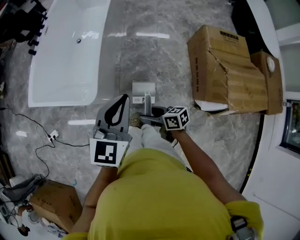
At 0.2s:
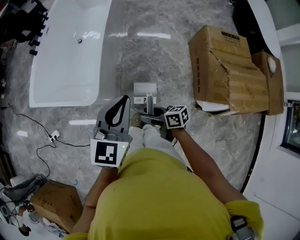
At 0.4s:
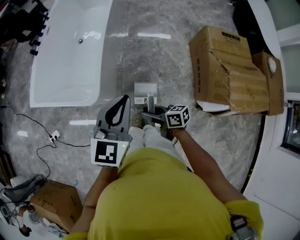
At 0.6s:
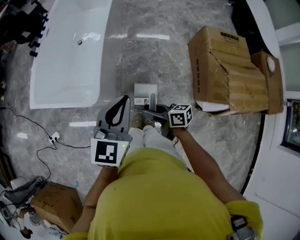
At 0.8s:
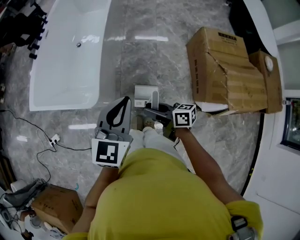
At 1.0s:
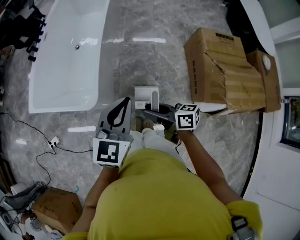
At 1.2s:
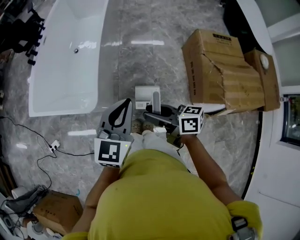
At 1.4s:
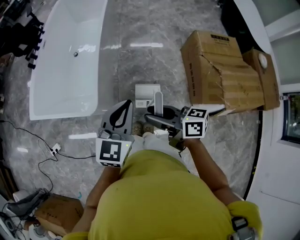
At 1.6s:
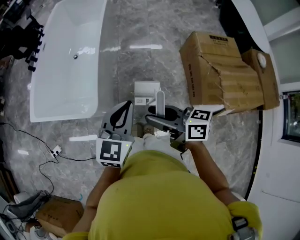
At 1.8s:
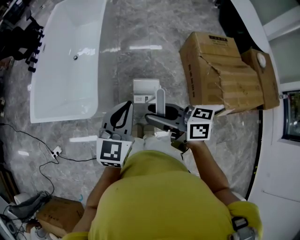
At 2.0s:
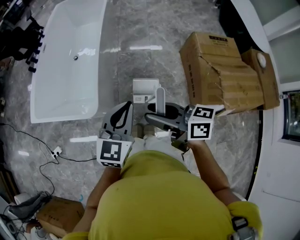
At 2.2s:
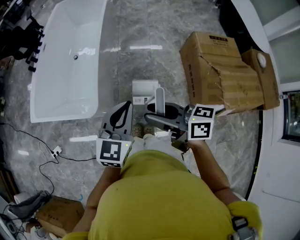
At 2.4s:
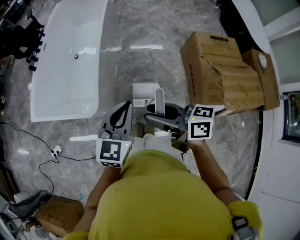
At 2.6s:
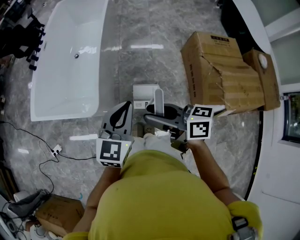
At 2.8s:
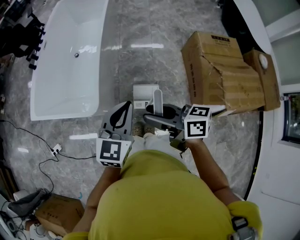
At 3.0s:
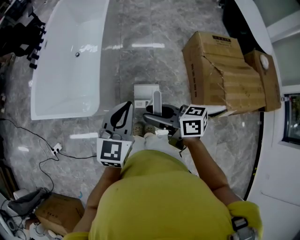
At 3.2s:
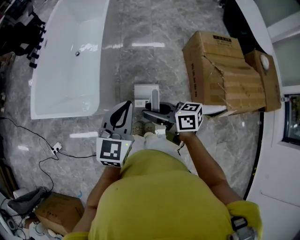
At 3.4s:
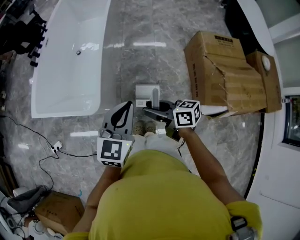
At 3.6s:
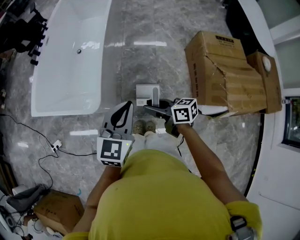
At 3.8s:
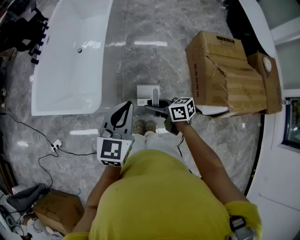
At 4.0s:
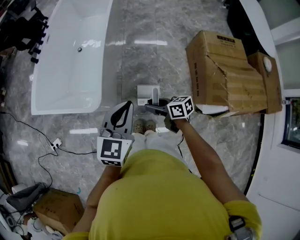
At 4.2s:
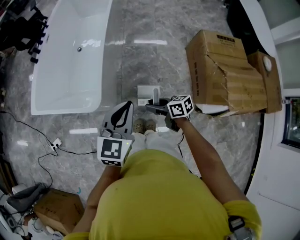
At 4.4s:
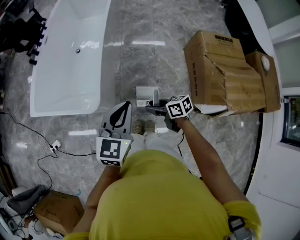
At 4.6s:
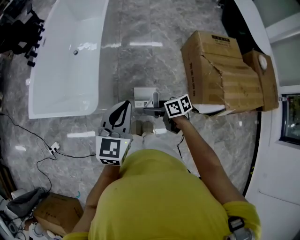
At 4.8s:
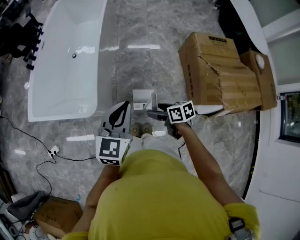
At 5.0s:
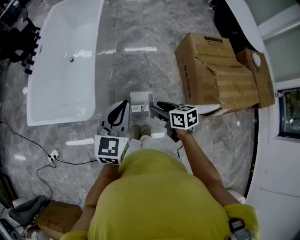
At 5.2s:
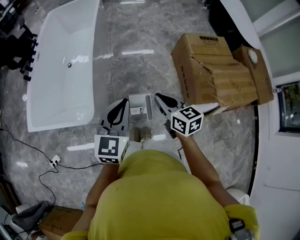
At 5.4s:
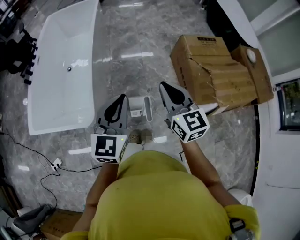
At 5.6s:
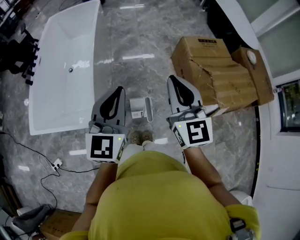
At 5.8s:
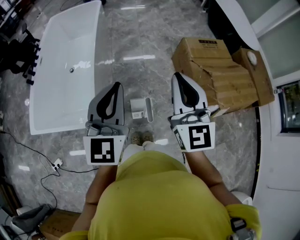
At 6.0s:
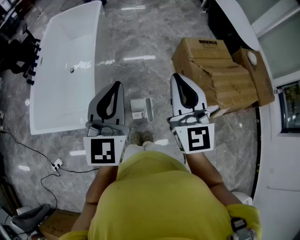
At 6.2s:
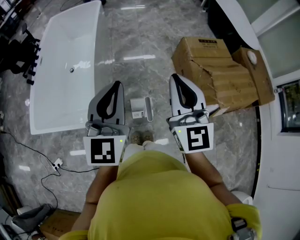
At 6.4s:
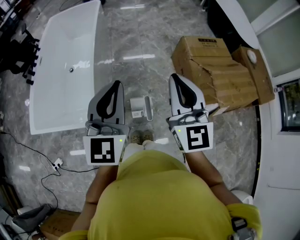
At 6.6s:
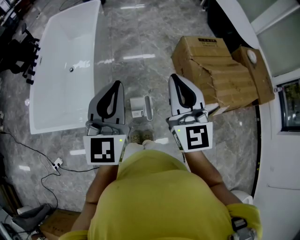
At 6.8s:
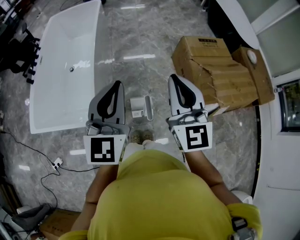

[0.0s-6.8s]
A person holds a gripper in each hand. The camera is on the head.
0.0s to 1.4s: The right gripper shifts approximately 20 cm upward.
1.4s to 2.8s: There are only small adjustments of the grippers.
2.8s to 4.0s: The right gripper is displaced downward by roughly 20 cm.
4.0s to 5.4s: The left gripper moves upward, some 5 cm. The right gripper moves upward, some 25 cm, rotates roughly 60 degrees, and closes up.
5.4s to 6.8s: Both grippers move upward, approximately 10 cm. The right gripper changes its angle by approximately 20 degrees.

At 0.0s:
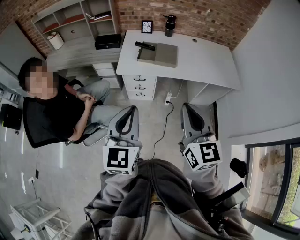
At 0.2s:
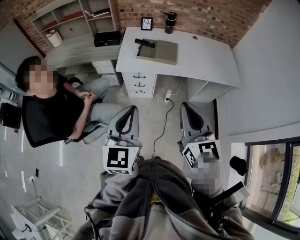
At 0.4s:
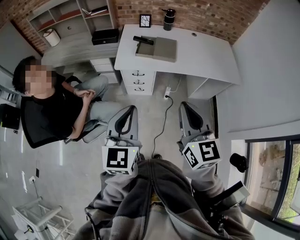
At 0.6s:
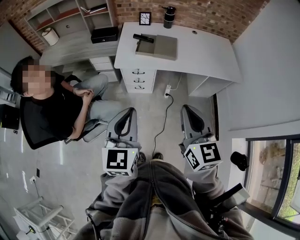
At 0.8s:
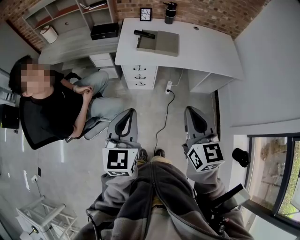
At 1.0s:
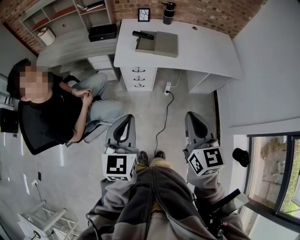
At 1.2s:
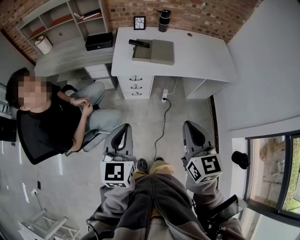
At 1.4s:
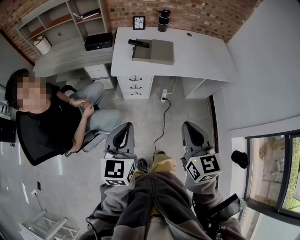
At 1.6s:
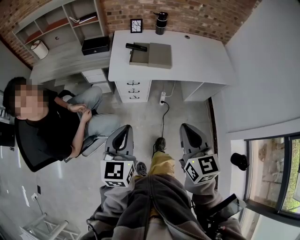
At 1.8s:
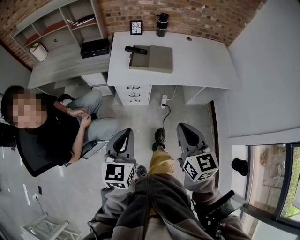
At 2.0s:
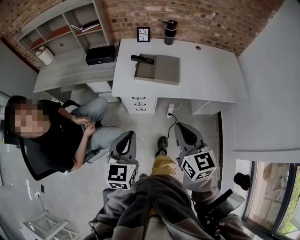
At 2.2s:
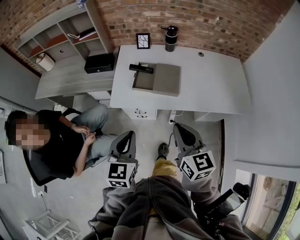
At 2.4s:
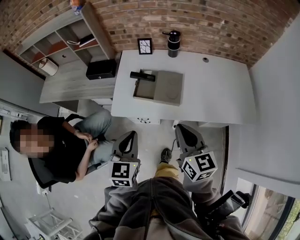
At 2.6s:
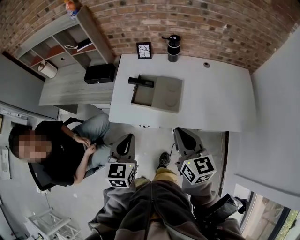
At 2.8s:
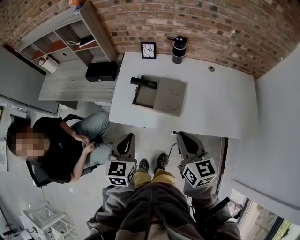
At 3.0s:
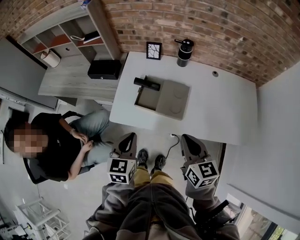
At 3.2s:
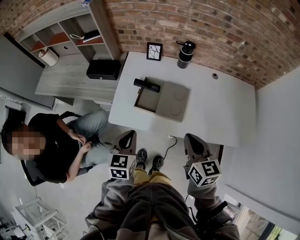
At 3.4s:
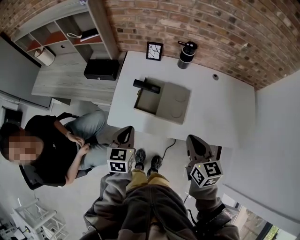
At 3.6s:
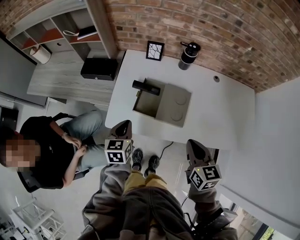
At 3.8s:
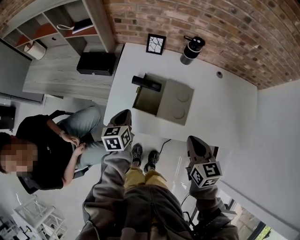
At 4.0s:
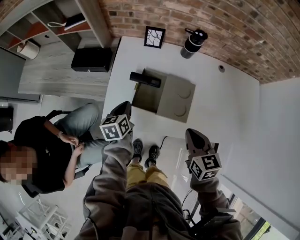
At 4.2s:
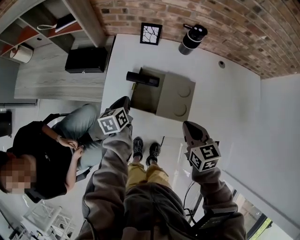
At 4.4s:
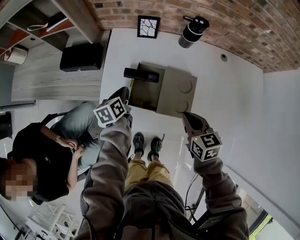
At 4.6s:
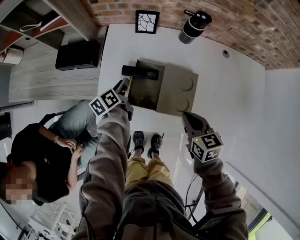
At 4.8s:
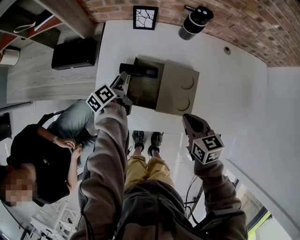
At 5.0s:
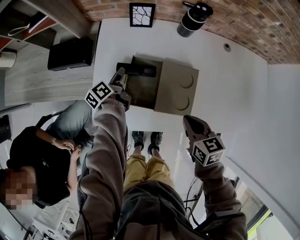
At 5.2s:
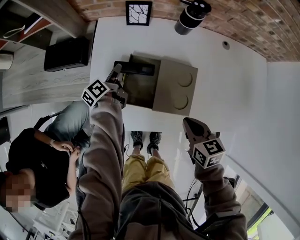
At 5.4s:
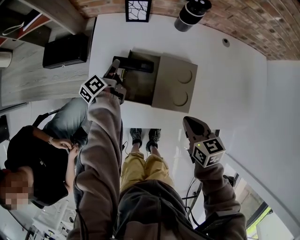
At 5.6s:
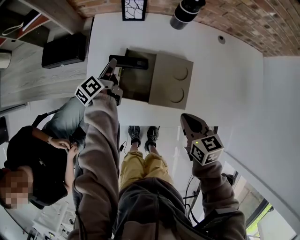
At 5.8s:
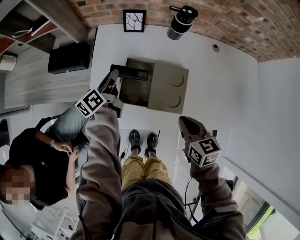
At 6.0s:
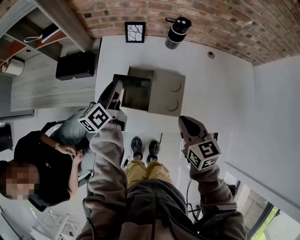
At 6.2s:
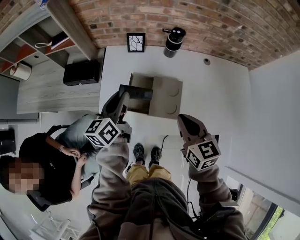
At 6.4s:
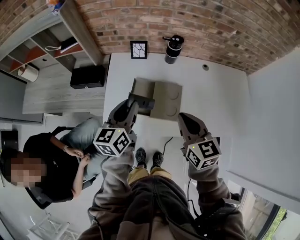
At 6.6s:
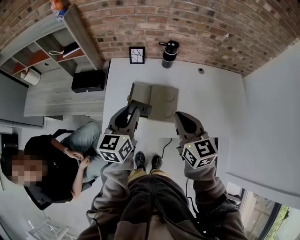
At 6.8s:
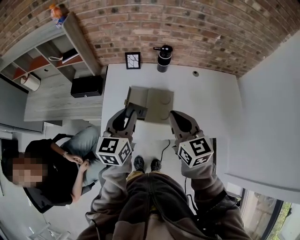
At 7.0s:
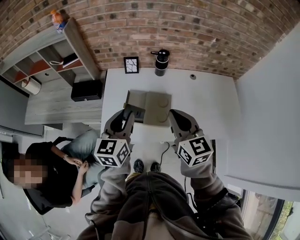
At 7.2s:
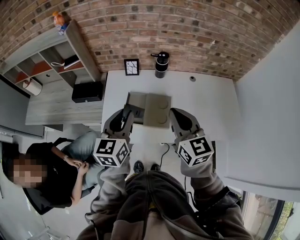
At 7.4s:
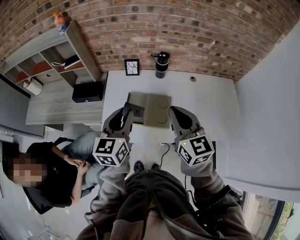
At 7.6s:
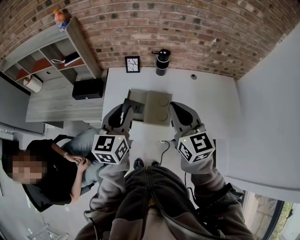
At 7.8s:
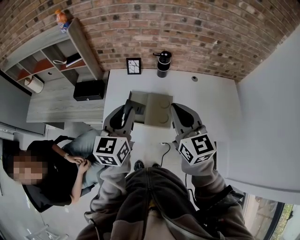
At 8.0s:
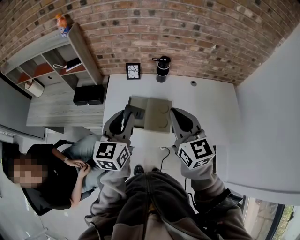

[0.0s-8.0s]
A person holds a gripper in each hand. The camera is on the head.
0.0s to 1.6s: Both grippers travel together downward, some 10 cm.
1.6s to 3.2s: Both grippers travel together forward, about 35 cm.
3.2s to 4.8s: The left gripper heads forward and downward, covering some 40 cm, twists about 60 degrees counterclockwise, seen from behind, and opens. Meanwhile the right gripper travels downward and forward by about 20 cm, and turns by about 20 degrees.
4.8s to 6.4s: The left gripper is displaced upward and backward by approximately 30 cm, and twists roughly 40 degrees clockwise, seen from behind. The right gripper travels upward by roughly 20 cm, and changes its angle by some 20 degrees.
6.4s to 8.0s: The right gripper is displaced upward by approximately 10 cm; the left gripper heads upward and backward, covering some 10 cm.

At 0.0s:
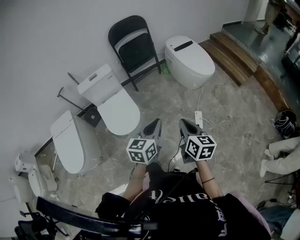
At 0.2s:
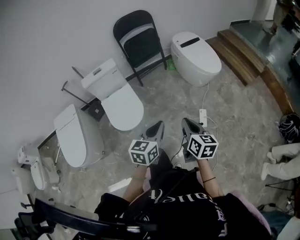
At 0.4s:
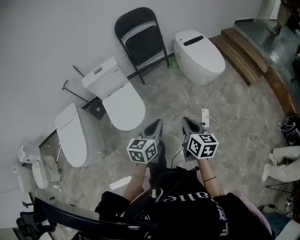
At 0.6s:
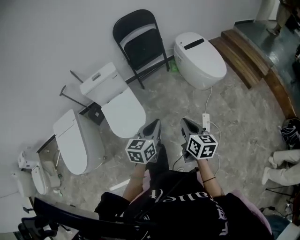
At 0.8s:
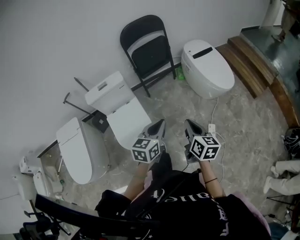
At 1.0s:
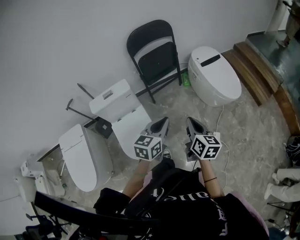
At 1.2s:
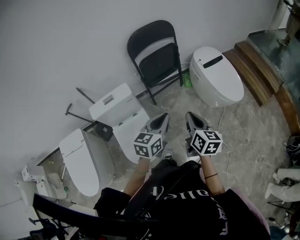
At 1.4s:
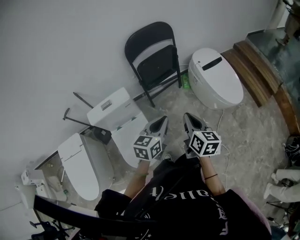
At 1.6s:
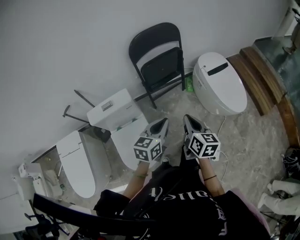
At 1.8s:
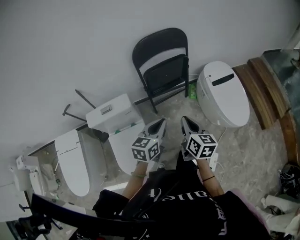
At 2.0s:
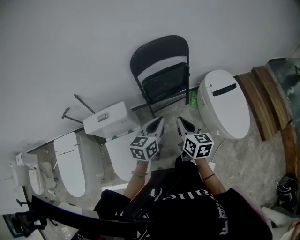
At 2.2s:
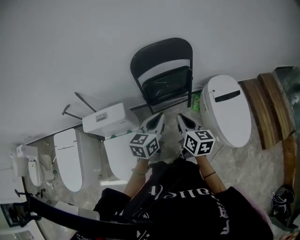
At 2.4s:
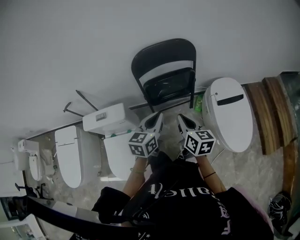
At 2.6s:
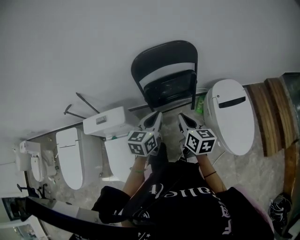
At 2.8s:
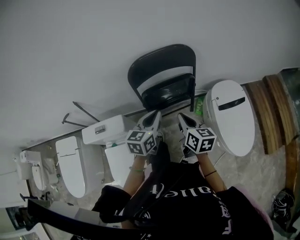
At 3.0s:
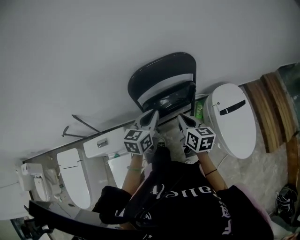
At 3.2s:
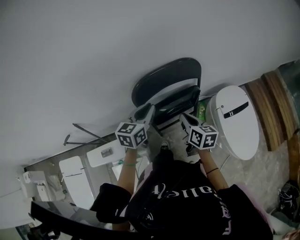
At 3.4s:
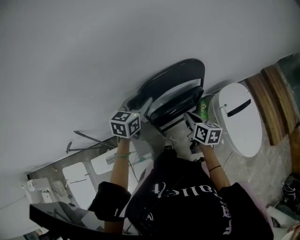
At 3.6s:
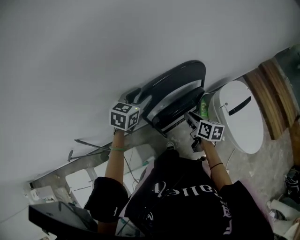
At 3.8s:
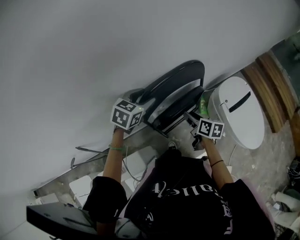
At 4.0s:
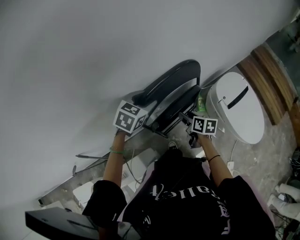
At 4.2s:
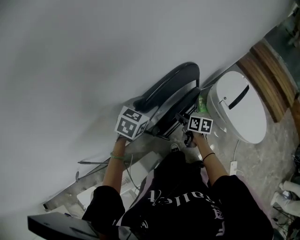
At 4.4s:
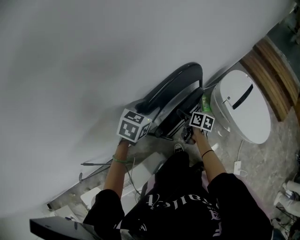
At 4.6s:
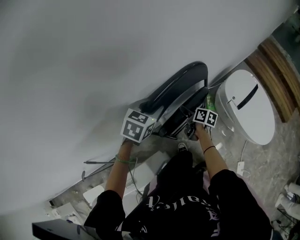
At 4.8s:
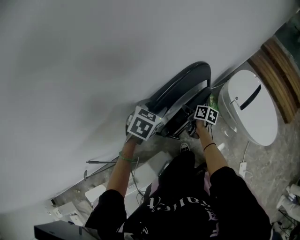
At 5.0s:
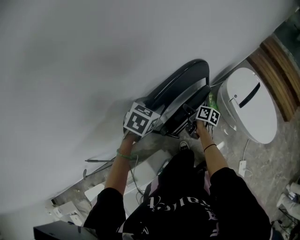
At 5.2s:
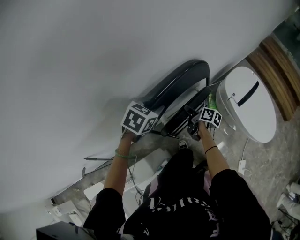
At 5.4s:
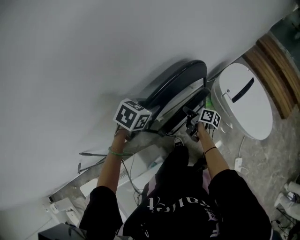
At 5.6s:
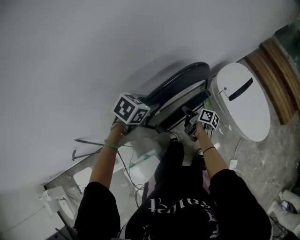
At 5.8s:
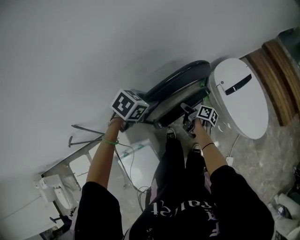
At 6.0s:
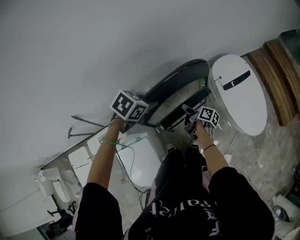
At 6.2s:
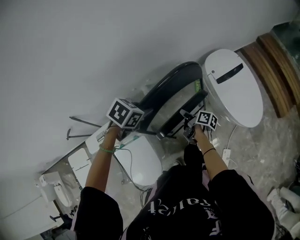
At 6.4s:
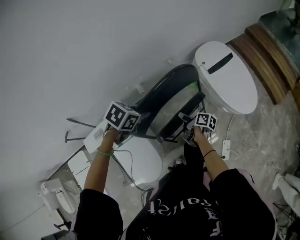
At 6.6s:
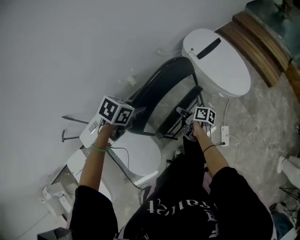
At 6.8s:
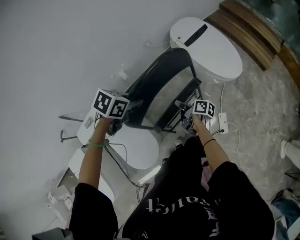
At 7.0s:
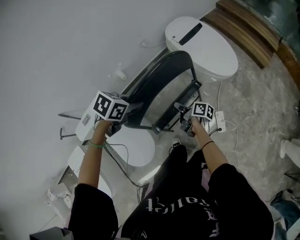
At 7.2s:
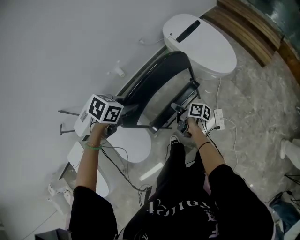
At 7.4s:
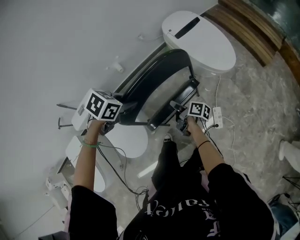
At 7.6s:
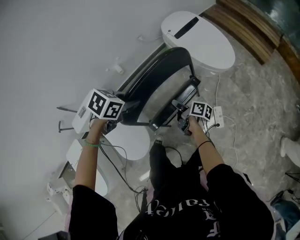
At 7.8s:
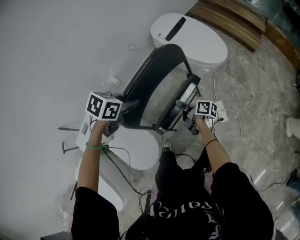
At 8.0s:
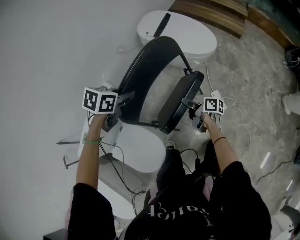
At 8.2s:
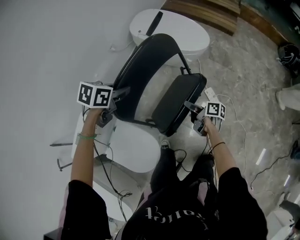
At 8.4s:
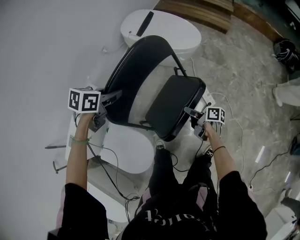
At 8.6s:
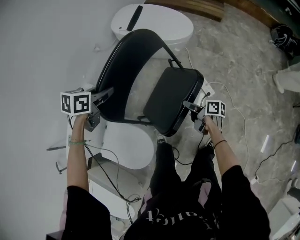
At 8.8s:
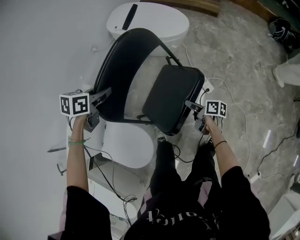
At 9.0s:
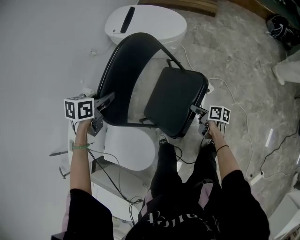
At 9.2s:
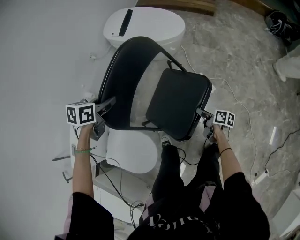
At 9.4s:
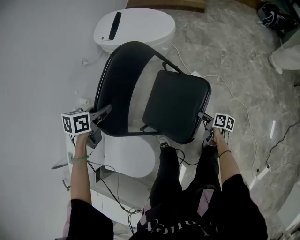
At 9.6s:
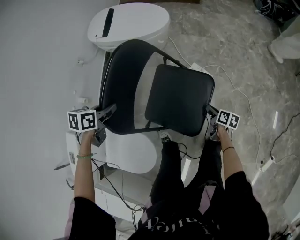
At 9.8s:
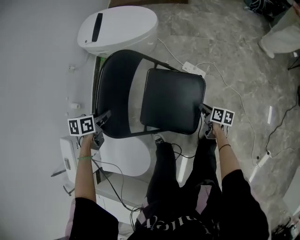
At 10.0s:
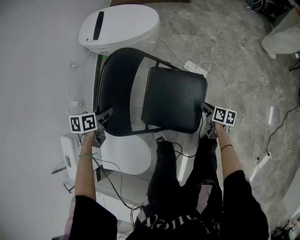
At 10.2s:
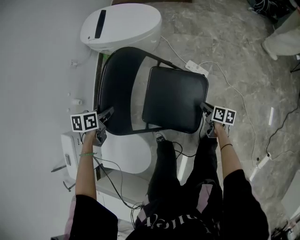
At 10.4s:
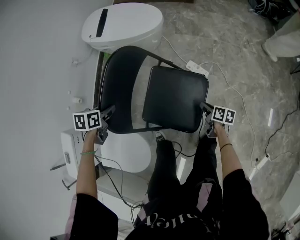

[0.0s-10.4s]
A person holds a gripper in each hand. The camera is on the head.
0.0s to 1.4s: The two grippers travel together, forward, roughly 40 cm.
1.4s to 3.0s: The two grippers travel together, forward, some 40 cm.
3.0s to 4.4s: The left gripper travels forward by some 25 cm, tips its fingers downward by some 30 degrees, and opens up. Meanwhile the right gripper heads forward and downward, covering roughly 30 cm, twists roughly 40 degrees clockwise, seen from behind, and opens its fingers.
4.4s to 6.0s: The two grippers go some 25 cm backward and to the right. The left gripper closes its fingers; the right gripper changes its angle by roughly 20 degrees, and closes up.
6.0s to 7.4s: Both grippers travel together backward and to the right, roughly 40 cm.
7.4s to 9.0s: The left gripper heads downward, covering roughly 5 cm. Meanwhile the right gripper goes approximately 30 cm to the right, backward and downward, swivels about 30 degrees, and opens up.
9.0s to 10.4s: The right gripper heads to the right and downward, covering about 15 cm, and closes. Meanwhile the left gripper is displaced downward by about 15 cm.
